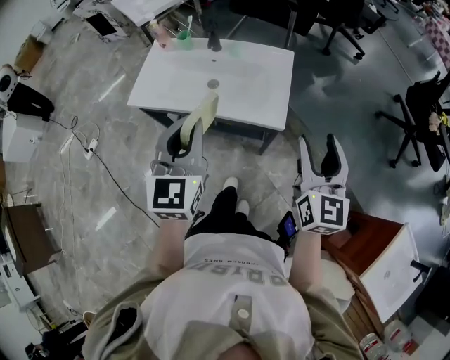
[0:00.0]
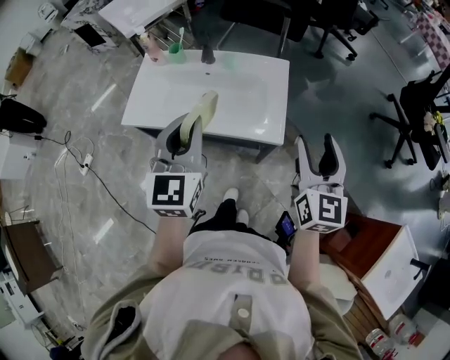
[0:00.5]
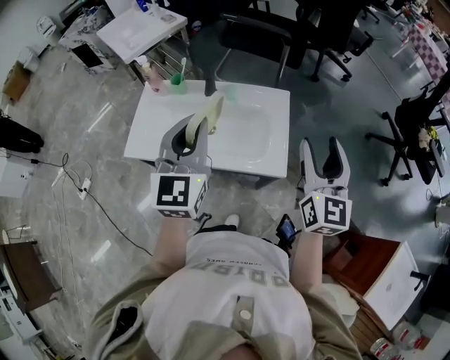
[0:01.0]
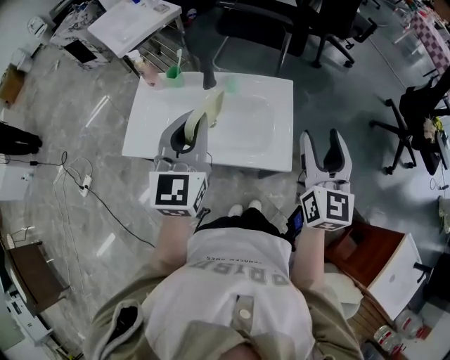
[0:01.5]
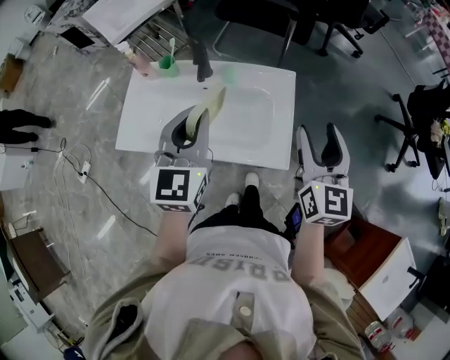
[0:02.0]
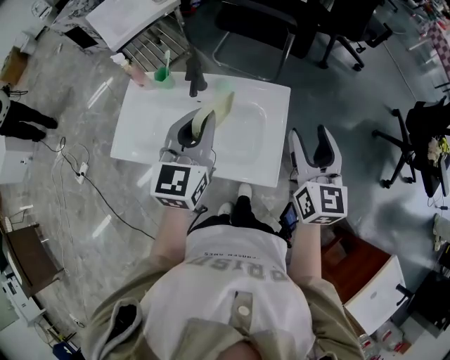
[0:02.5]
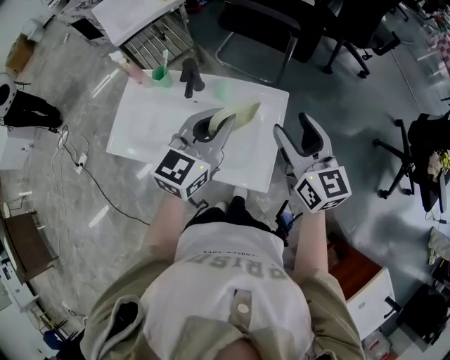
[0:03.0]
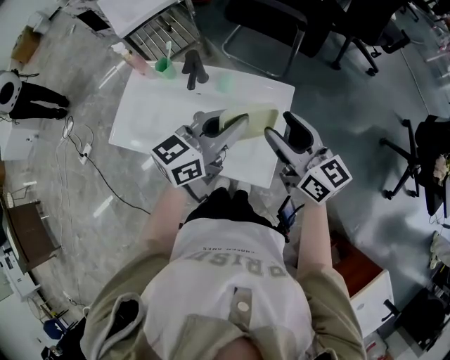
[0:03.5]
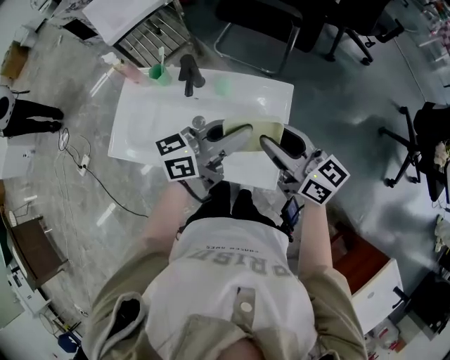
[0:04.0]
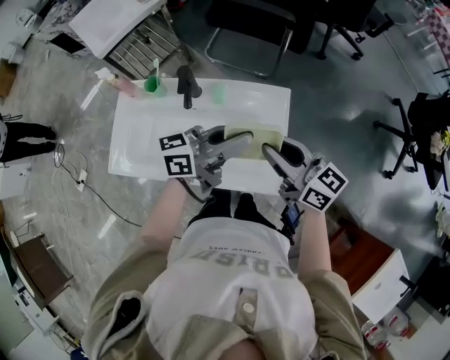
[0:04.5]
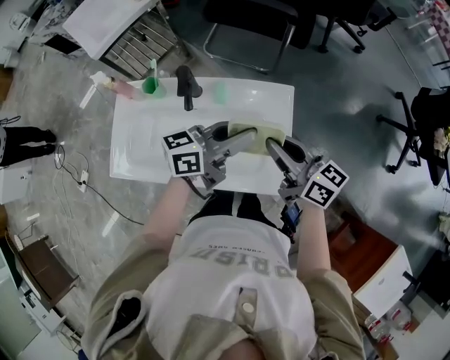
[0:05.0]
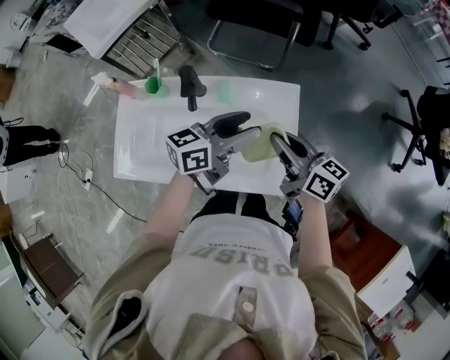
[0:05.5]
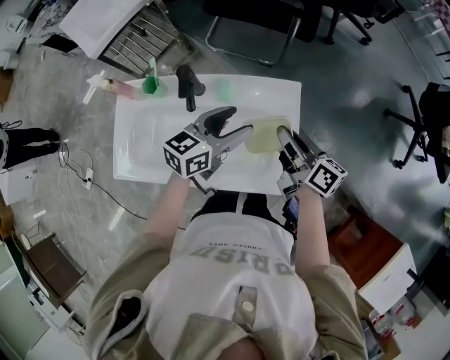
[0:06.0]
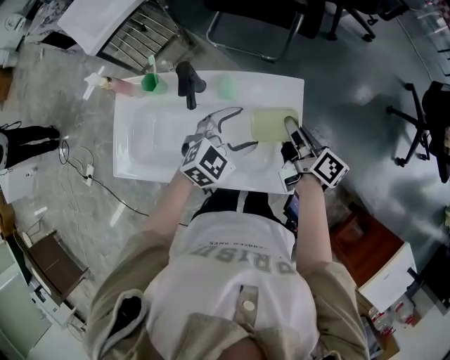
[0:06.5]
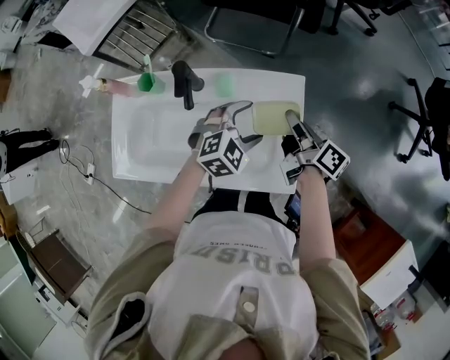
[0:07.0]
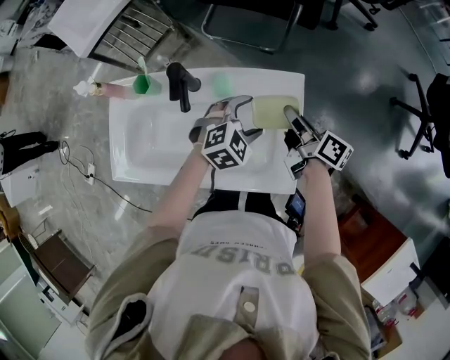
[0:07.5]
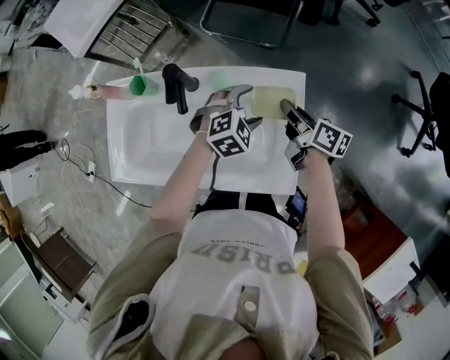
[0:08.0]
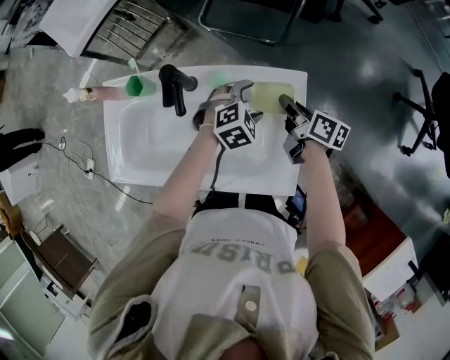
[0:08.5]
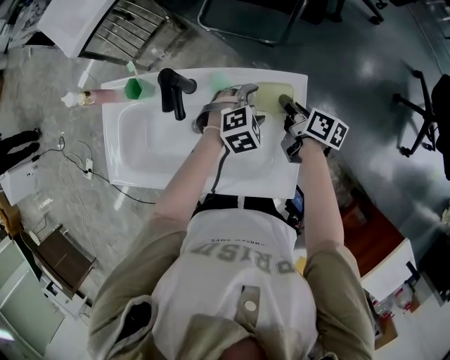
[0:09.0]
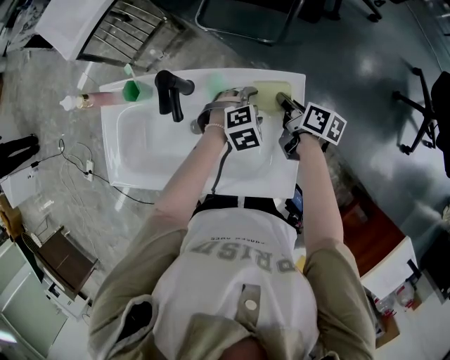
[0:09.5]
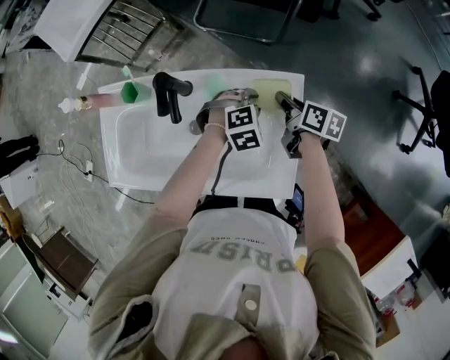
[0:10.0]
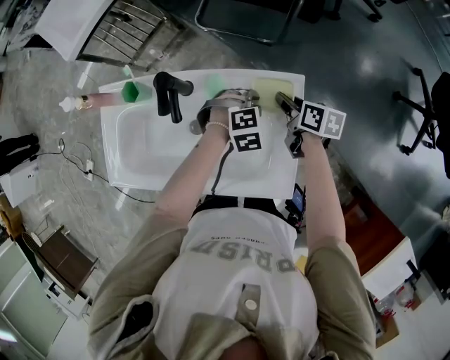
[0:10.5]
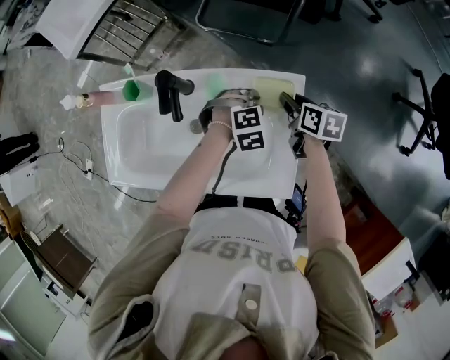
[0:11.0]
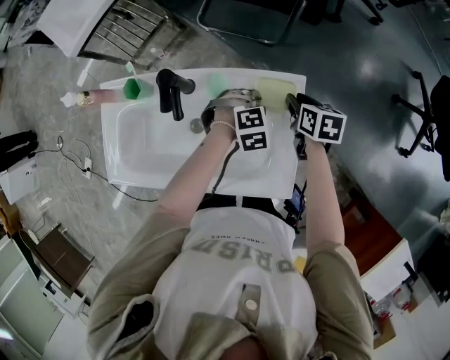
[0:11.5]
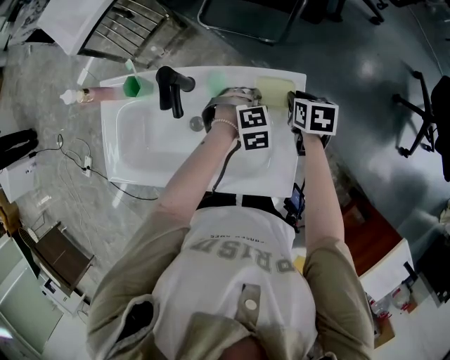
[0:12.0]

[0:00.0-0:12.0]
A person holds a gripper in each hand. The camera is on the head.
0:00.0 to 0:02.0: The grippers both shift forward by approximately 20 cm.
0:02.0 to 0:04.0: The left gripper moves to the right, downward and forward, some 15 cm, and turns by about 60 degrees, while the right gripper heads forward, to the left and downward, covering roughly 10 cm, and changes its angle by about 50 degrees.
0:04.0 to 0:06.0: The left gripper is displaced downward, forward and to the left by some 15 cm, changes its angle by about 20 degrees, and opens up; the right gripper goes roughly 10 cm downward and forward, changes its angle by some 40 degrees, and closes.
0:06.0 to 0:08.0: The left gripper moves downward, roughly 15 cm, and tips its fingers downward by some 40 degrees, while the right gripper heads downward and forward, covering approximately 15 cm.
0:08.0 to 0:10.0: Both grippers travel together downward, approximately 5 cm. The left gripper closes.
0:10.0 to 0:12.0: The right gripper turns by about 40 degrees.

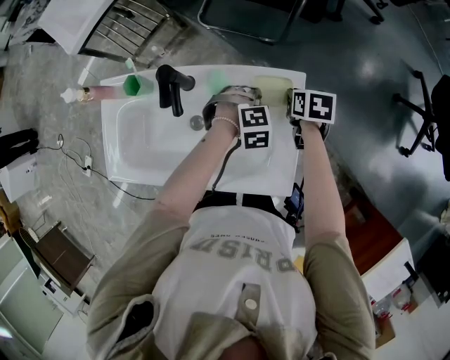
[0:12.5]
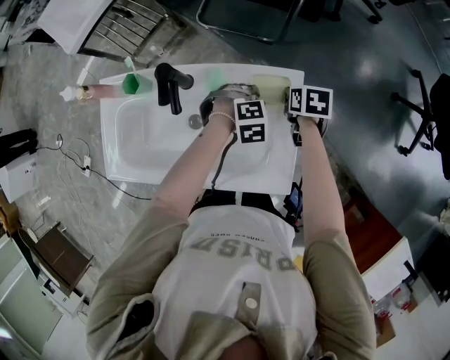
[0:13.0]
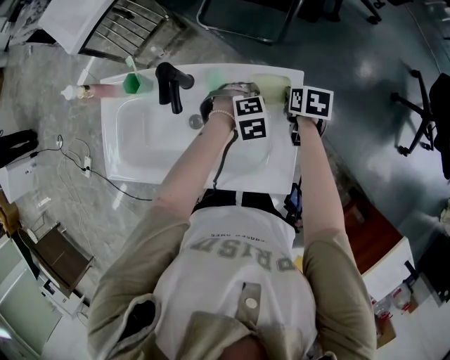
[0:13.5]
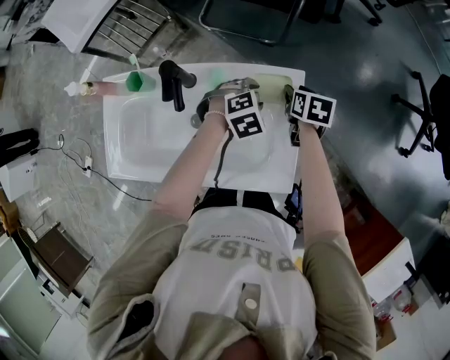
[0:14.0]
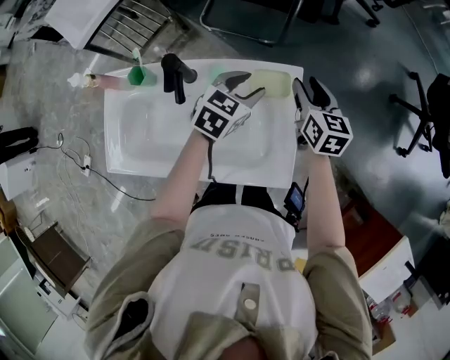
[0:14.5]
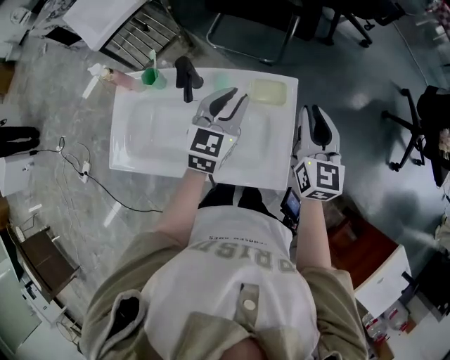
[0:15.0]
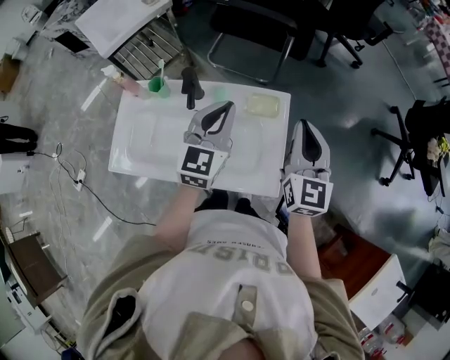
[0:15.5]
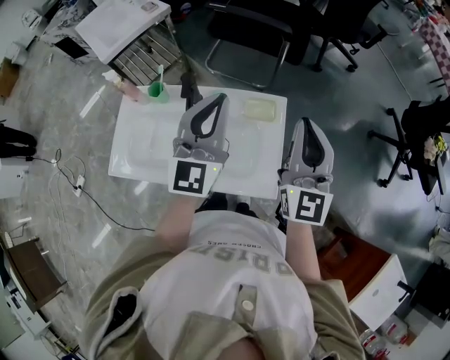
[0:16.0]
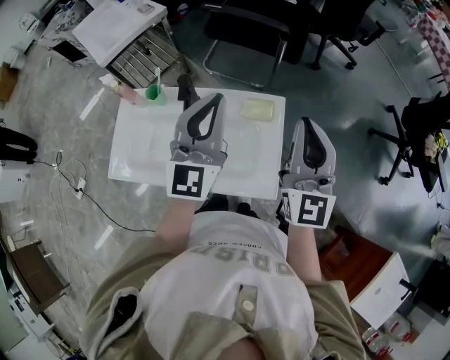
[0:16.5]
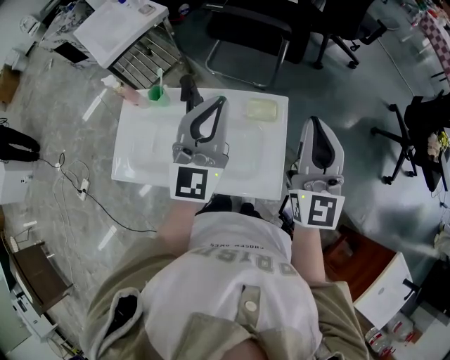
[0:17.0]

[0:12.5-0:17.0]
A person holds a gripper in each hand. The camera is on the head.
0:12.5 to 0:14.5: Both grippers move upward, about 15 cm. The left gripper tips its fingers upward by roughly 30 degrees; the right gripper tilts its fingers about 40 degrees upward, and opens up.
0:14.5 to 0:17.0: The left gripper moves upward, some 25 cm, tips its fingers upward by some 40 degrees, and closes its fingers; the right gripper is displaced upward and backward by approximately 30 cm, points its fingers about 40 degrees further upward, and closes up.

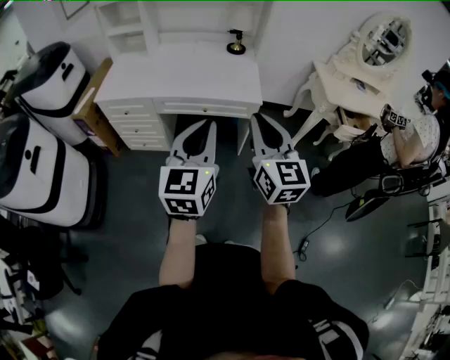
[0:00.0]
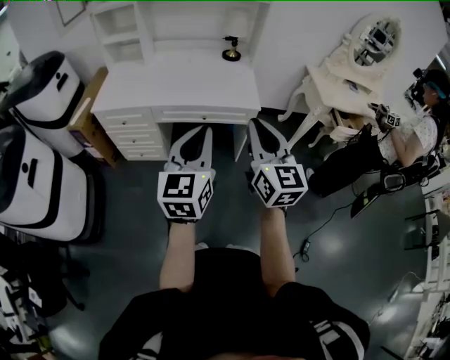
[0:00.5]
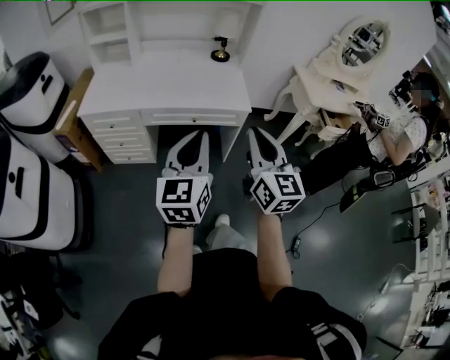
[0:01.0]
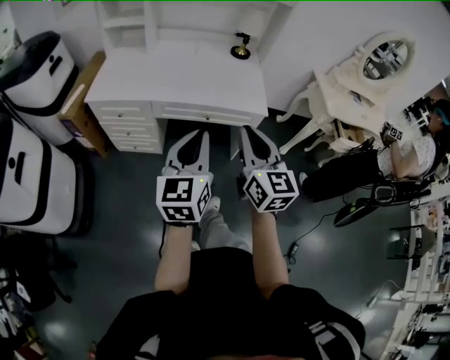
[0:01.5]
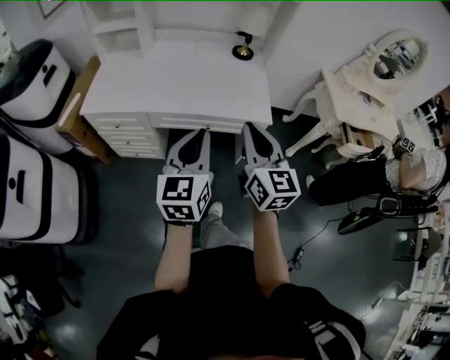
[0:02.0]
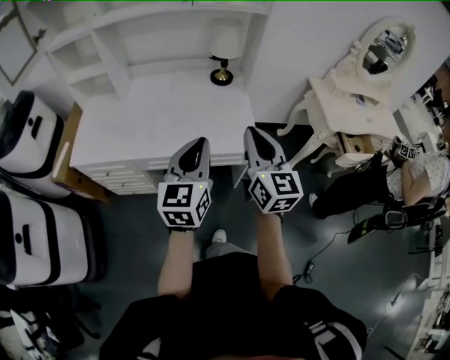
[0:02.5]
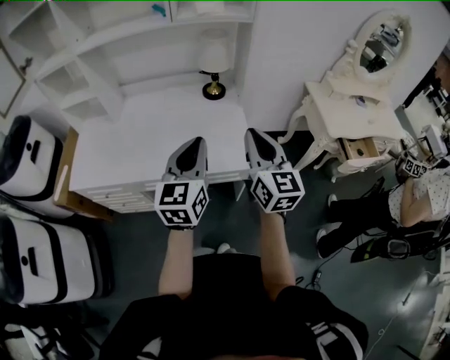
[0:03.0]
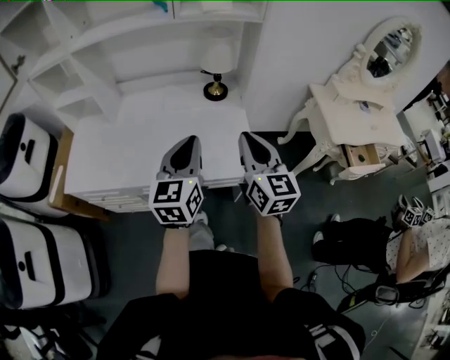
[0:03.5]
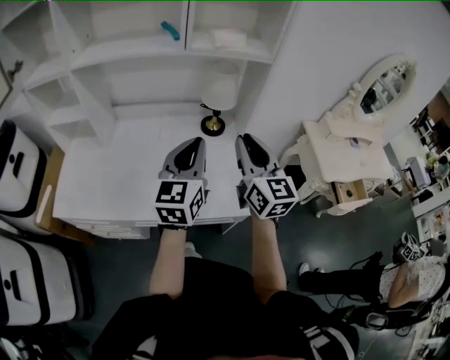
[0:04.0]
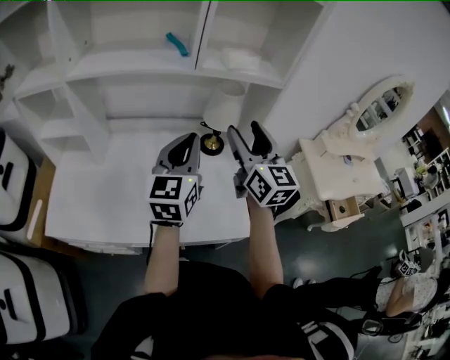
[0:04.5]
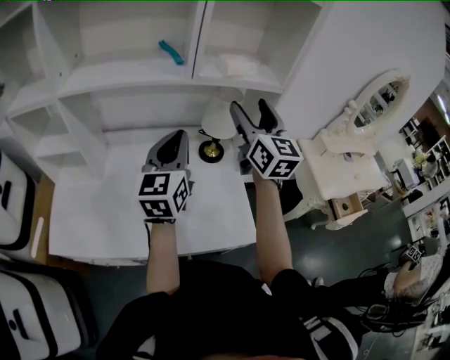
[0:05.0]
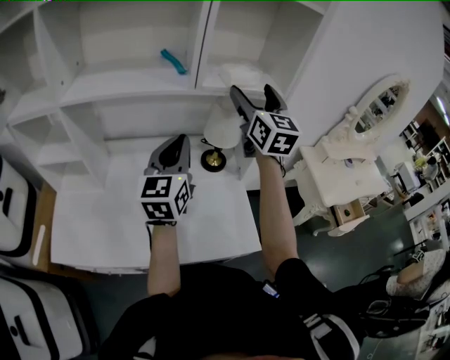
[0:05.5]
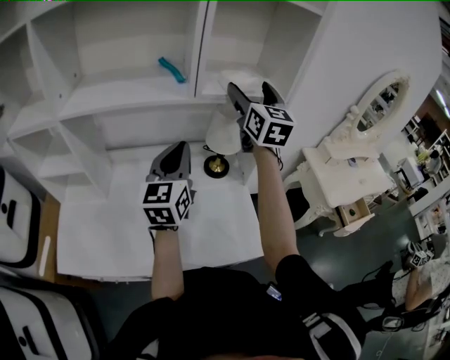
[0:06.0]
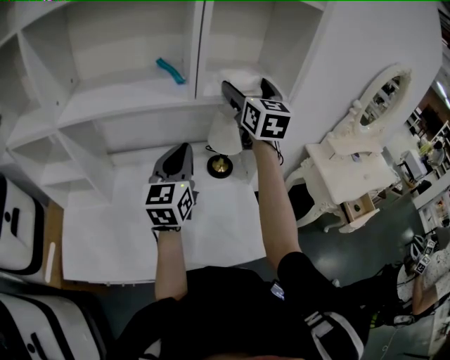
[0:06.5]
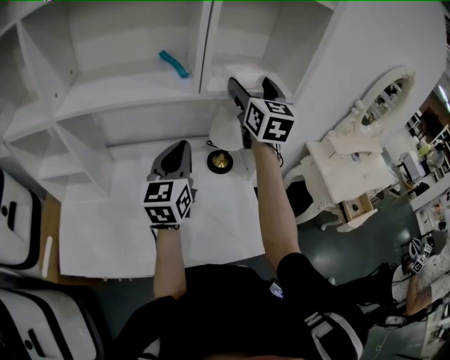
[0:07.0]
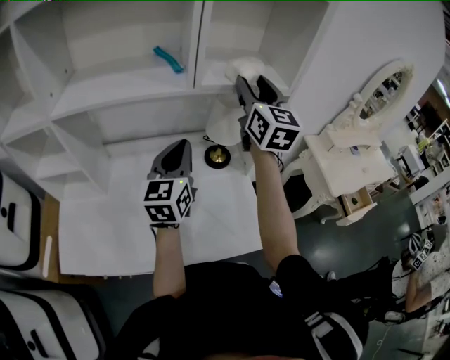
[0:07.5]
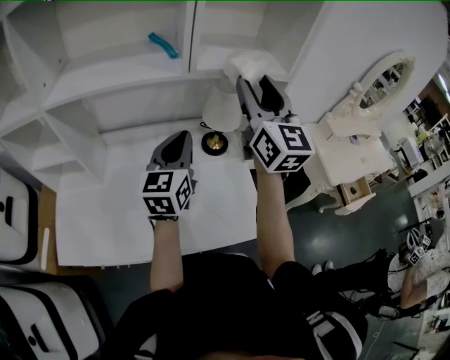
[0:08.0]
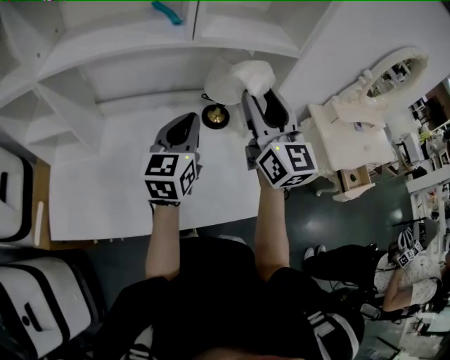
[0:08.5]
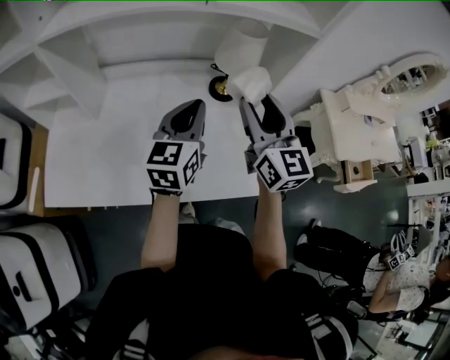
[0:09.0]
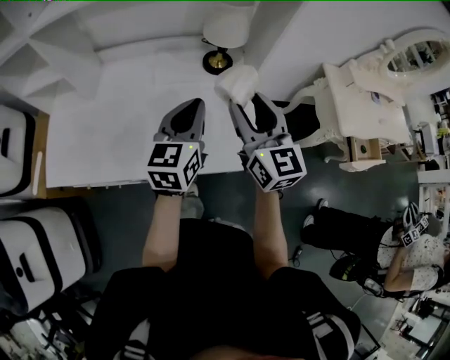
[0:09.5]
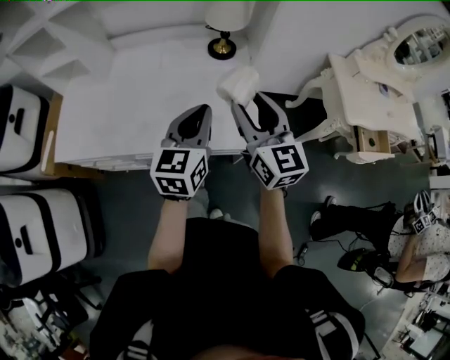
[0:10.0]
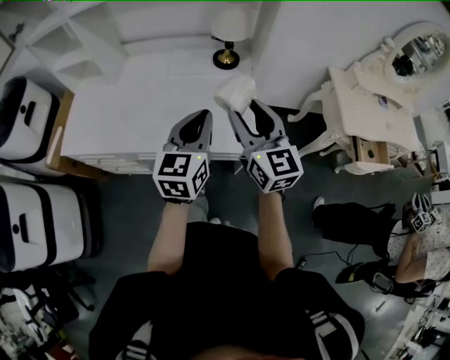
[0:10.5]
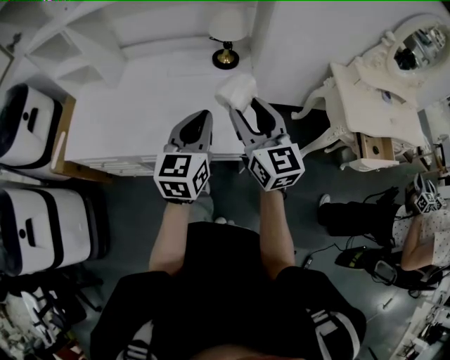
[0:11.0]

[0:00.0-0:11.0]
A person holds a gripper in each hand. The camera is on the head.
0:00.0 to 0:02.0: Both grippers move forward and to the left, approximately 20 cm.
0:02.0 to 0:03.5: The right gripper shifts some 30 cm forward and to the right. The left gripper goes roughly 30 cm forward.
0:03.5 to 0:05.5: The right gripper shifts roughly 40 cm forward and upward, and opens. Meanwhile the left gripper is displaced forward and to the left by roughly 25 cm.
0:05.5 to 0:07.5: The left gripper shifts by roughly 5 cm. Meanwhile the right gripper closes up.
0:07.5 to 0:09.0: The right gripper goes roughly 20 cm downward and backward. Meanwhile the left gripper goes some 5 cm downward.
0:09.0 to 0:11.0: The right gripper travels backward by about 20 cm. Meanwhile the left gripper moves backward and to the right, roughly 25 cm.
